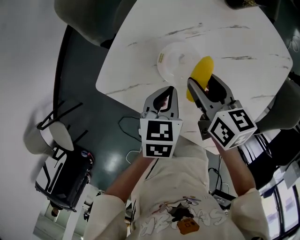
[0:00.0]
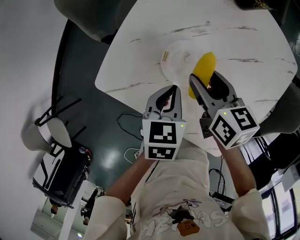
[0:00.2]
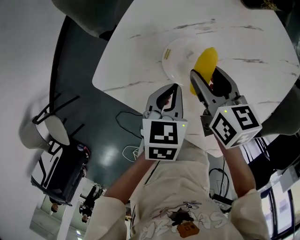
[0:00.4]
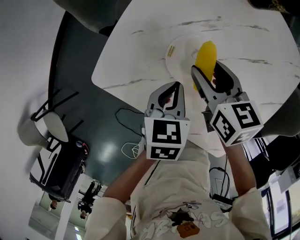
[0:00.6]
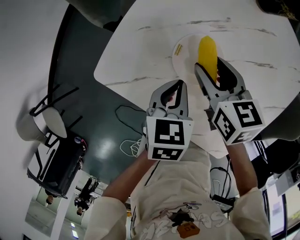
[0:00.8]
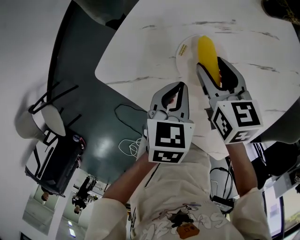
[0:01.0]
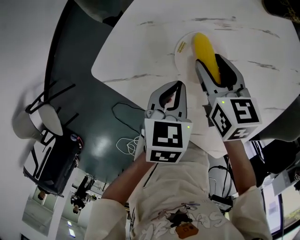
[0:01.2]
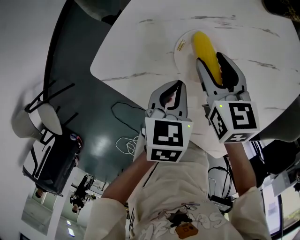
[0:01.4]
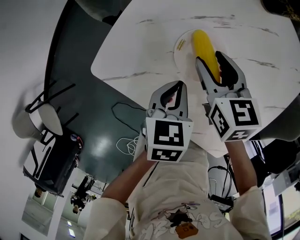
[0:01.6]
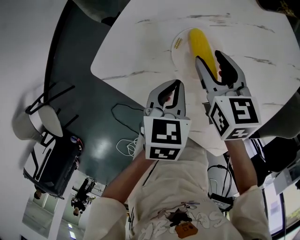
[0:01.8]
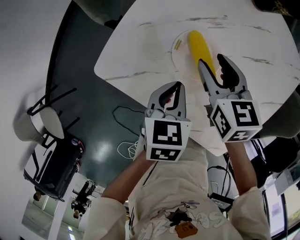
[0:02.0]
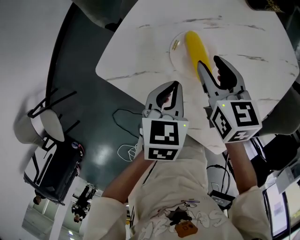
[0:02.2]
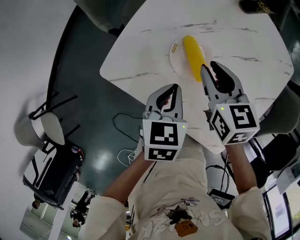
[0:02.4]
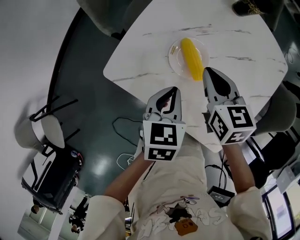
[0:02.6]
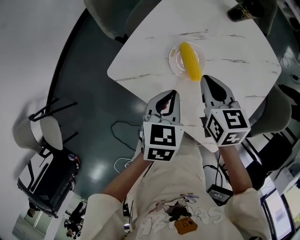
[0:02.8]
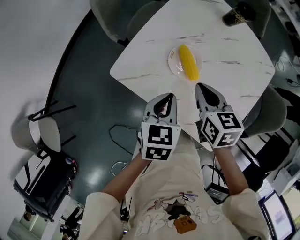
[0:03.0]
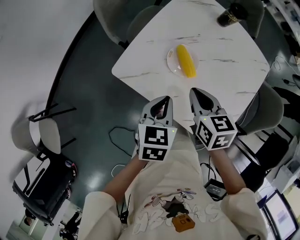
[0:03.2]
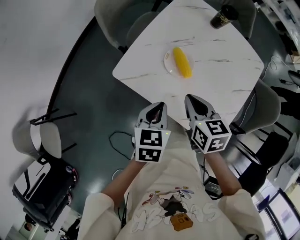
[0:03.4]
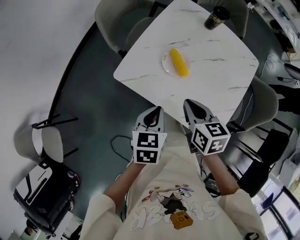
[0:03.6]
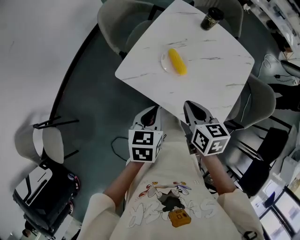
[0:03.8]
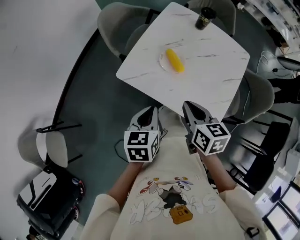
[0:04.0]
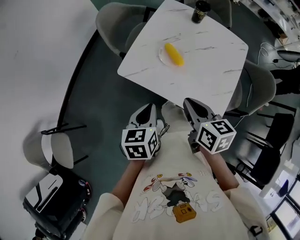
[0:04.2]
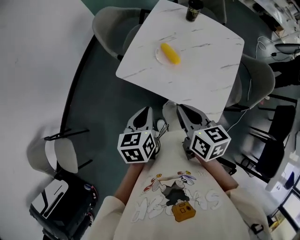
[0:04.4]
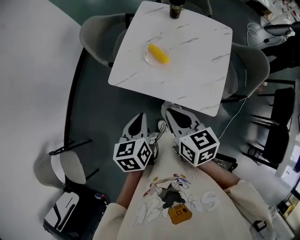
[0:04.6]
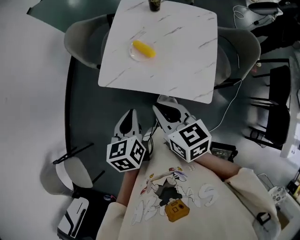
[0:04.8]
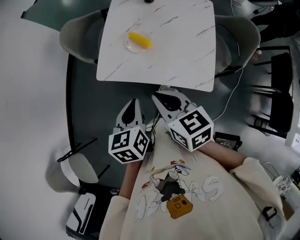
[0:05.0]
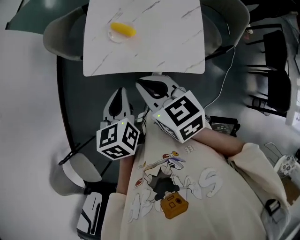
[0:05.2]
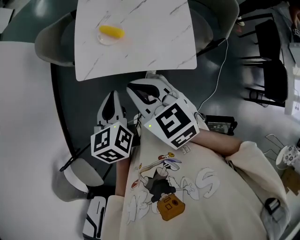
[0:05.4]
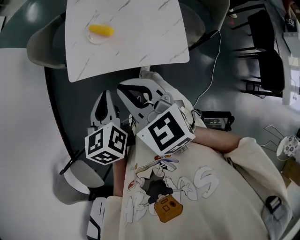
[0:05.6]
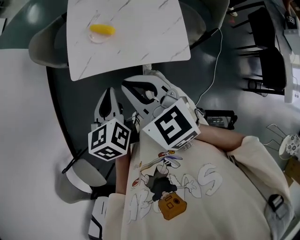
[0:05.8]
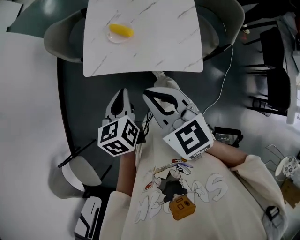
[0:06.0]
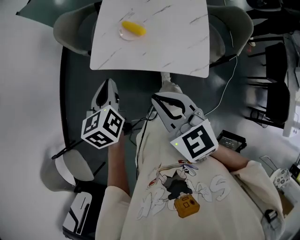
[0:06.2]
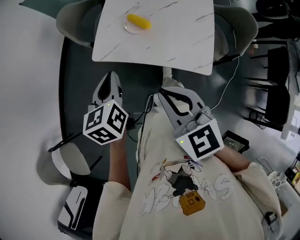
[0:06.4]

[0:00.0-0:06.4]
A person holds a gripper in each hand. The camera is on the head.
0:00.0 to 0:01.6: The left gripper ends up about 5 cm from where it was; the right gripper is displaced downward by some 5 cm.
0:01.6 to 0:03.2: Both grippers travel together upward and backward, some 20 cm. The right gripper closes.
0:03.2 to 0:04.8: The right gripper is displaced backward and upward by approximately 25 cm. Meanwhile the left gripper is displaced backward, upward and to the left by approximately 20 cm.
0:04.8 to 0:06.4: The right gripper heads backward, covering some 5 cm, and changes its angle by roughly 30 degrees; the left gripper ends up some 5 cm from where it was.

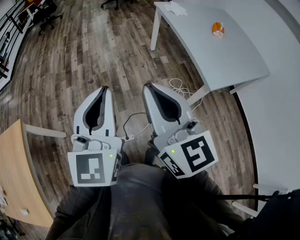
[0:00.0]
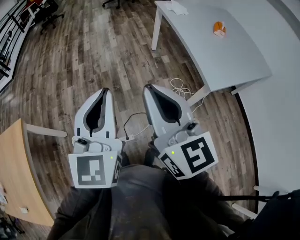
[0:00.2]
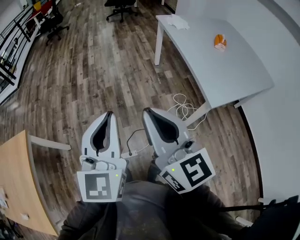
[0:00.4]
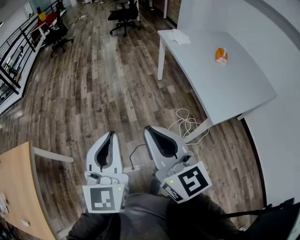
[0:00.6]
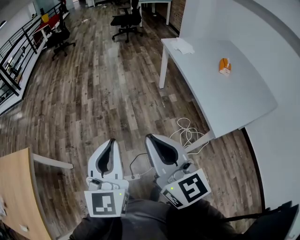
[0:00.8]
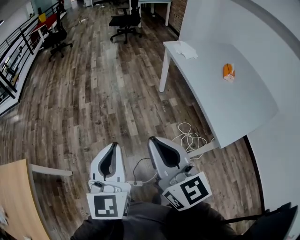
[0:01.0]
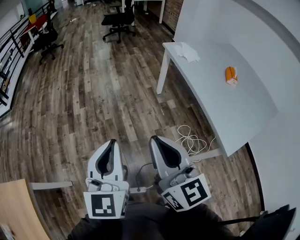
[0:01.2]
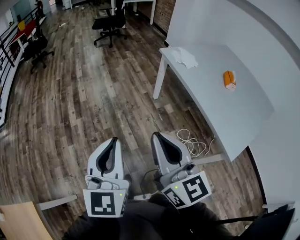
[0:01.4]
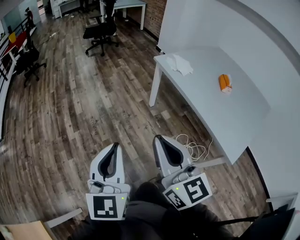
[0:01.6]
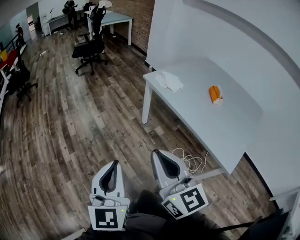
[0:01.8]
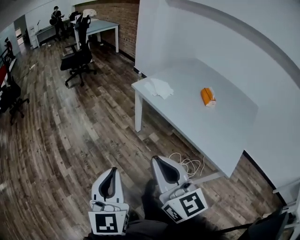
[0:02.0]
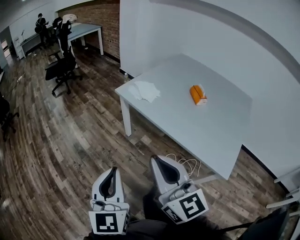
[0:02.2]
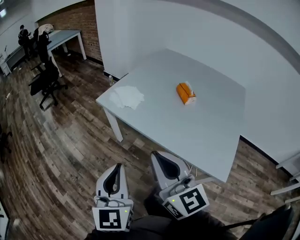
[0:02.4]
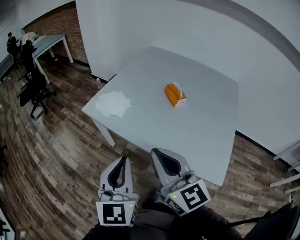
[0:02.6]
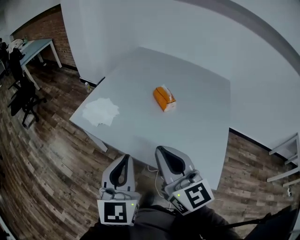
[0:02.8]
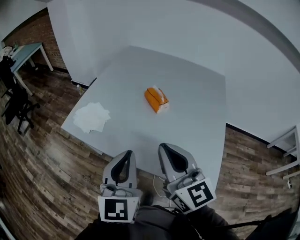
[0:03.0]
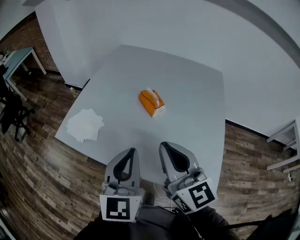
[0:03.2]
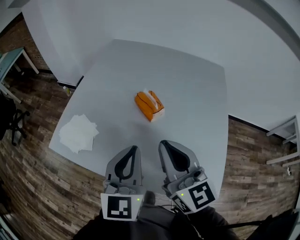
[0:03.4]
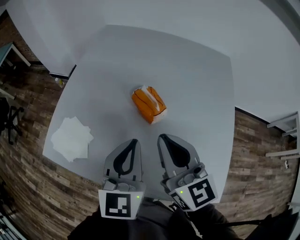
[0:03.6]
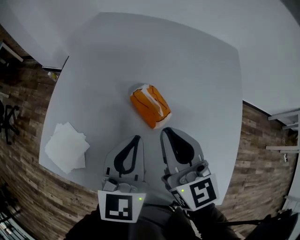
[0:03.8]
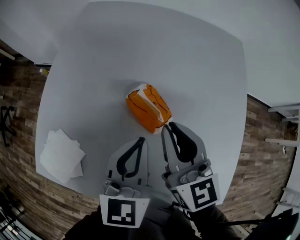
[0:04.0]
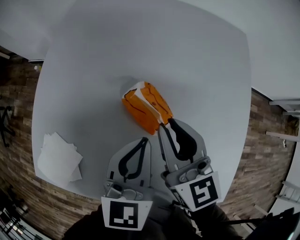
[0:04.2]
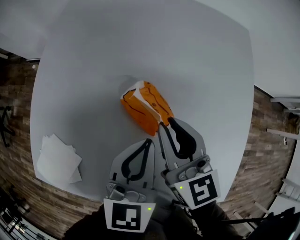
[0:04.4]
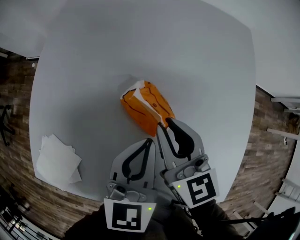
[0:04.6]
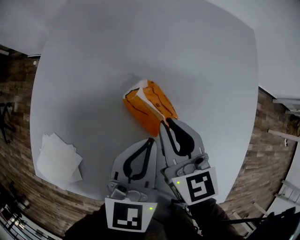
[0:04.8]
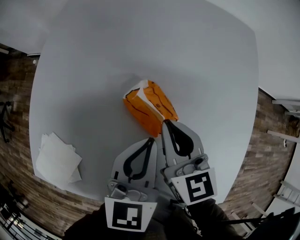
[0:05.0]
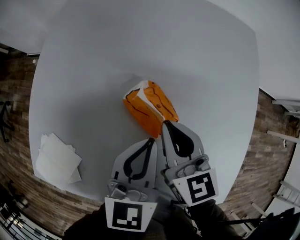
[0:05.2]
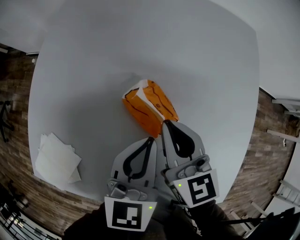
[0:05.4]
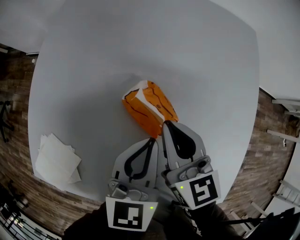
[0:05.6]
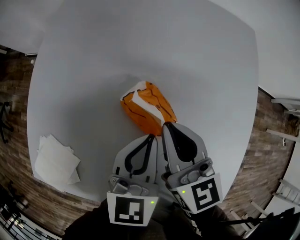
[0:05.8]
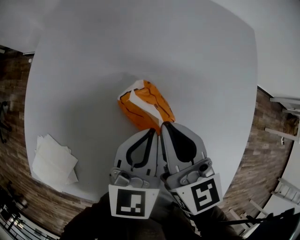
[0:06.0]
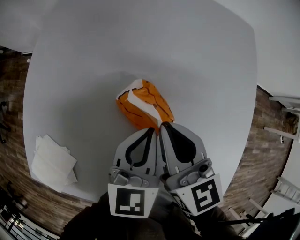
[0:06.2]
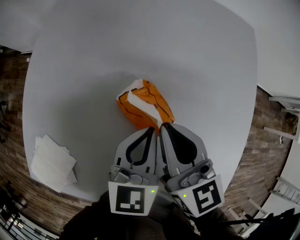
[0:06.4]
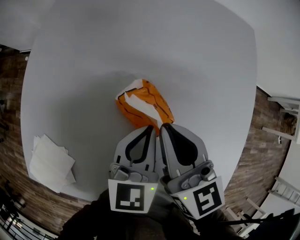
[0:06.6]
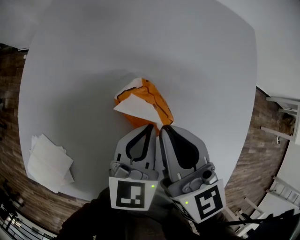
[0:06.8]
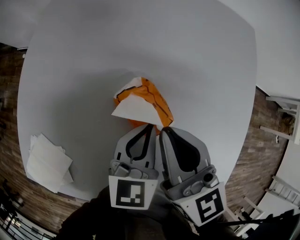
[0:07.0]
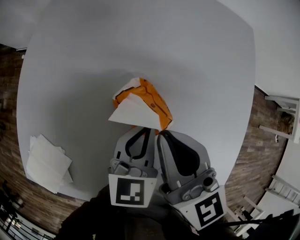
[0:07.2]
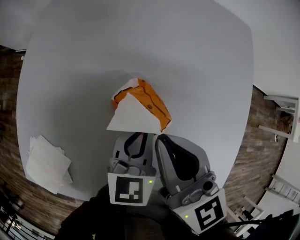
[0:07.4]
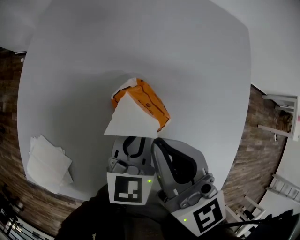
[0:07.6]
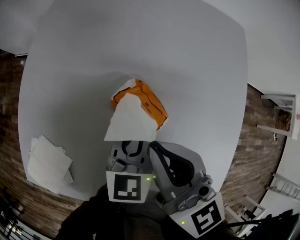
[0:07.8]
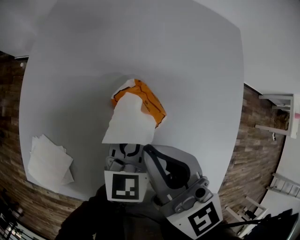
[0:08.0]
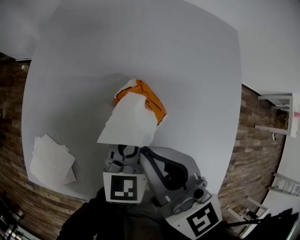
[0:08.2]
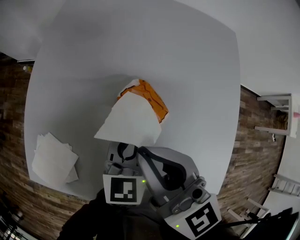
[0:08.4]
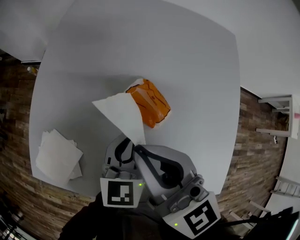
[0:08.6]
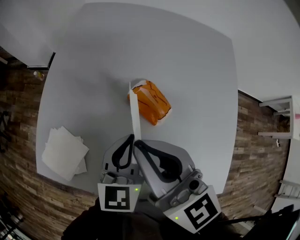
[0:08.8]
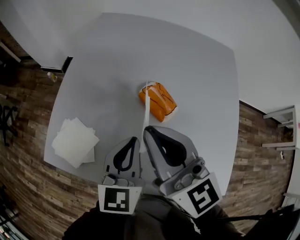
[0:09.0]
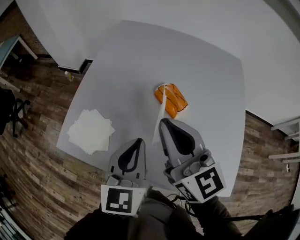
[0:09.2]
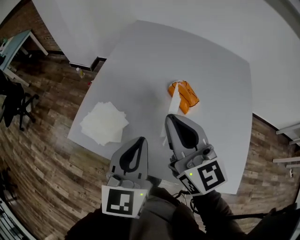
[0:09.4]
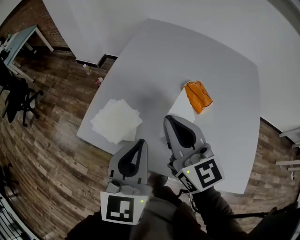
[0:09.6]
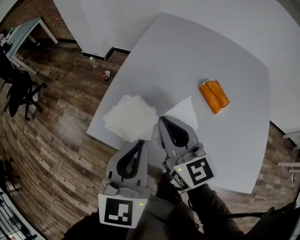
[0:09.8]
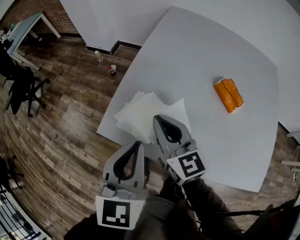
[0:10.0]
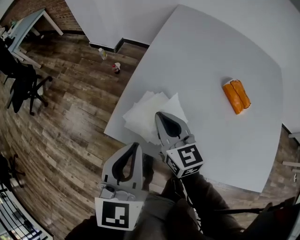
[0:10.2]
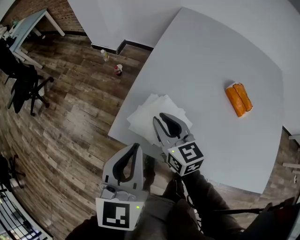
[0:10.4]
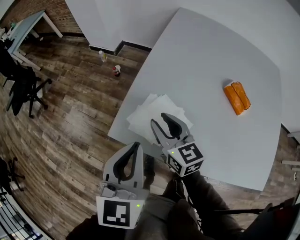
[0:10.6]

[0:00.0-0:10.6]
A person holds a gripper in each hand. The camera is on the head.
0:00.0 to 0:01.6: The two grippers travel together, forward, some 40 cm.
0:01.6 to 0:03.0: The pair of grippers is taken roughly 50 cm. The left gripper turns by some 40 degrees, while the right gripper turns by approximately 40 degrees.
0:03.0 to 0:04.6: The two grippers go roughly 40 cm forward and downward. The right gripper rotates roughly 30 degrees. Meanwhile the left gripper turns by roughly 30 degrees.
0:04.6 to 0:06.0: The grippers make only small movements.
0:06.0 to 0:07.6: The right gripper moves upward, some 5 cm.
0:07.6 to 0:09.0: The grippers both shift upward, backward and to the left by some 20 cm.
0:09.0 to 0:10.6: The right gripper moves to the left and downward, about 40 cm, swivels some 20 degrees, and opens its fingers, while the left gripper travels to the left by some 35 cm.

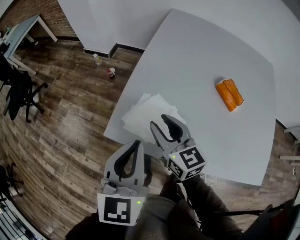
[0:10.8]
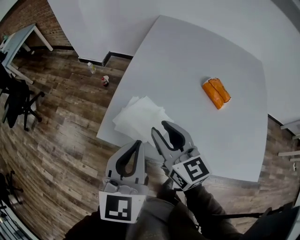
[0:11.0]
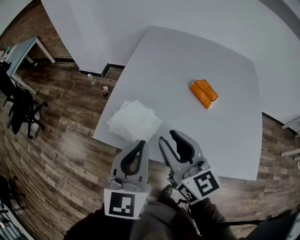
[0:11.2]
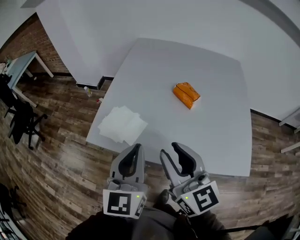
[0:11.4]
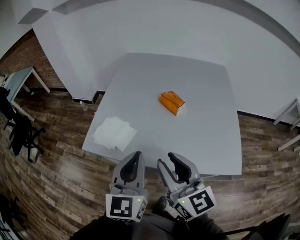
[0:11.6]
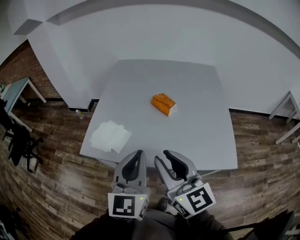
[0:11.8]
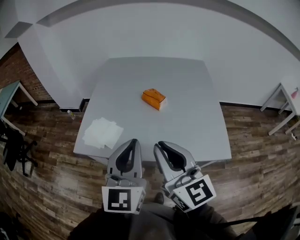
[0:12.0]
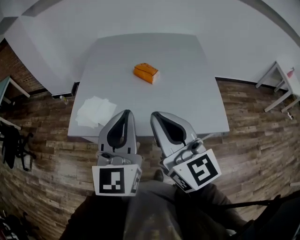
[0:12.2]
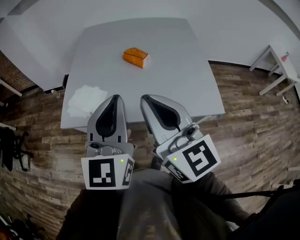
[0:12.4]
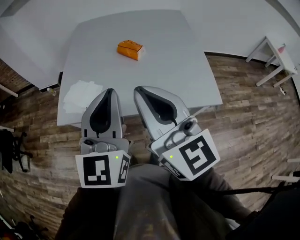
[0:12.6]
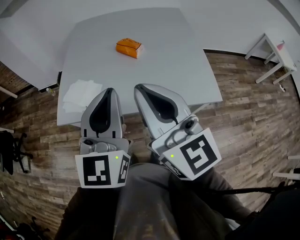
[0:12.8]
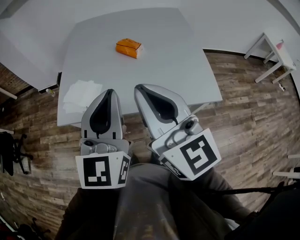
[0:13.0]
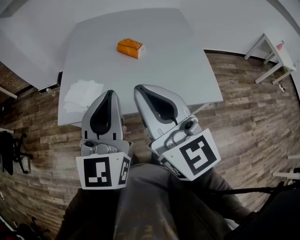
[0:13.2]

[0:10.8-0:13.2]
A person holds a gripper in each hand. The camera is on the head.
0:10.8 to 0:12.0: The left gripper shifts about 35 cm to the right, backward and upward, and swivels some 20 degrees, while the right gripper shifts some 40 cm backward, to the right and upward, turns by some 30 degrees, and closes.
0:12.0 to 0:13.2: There are only small adjustments of the grippers.

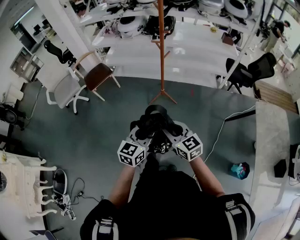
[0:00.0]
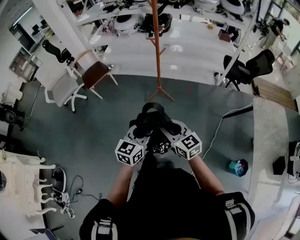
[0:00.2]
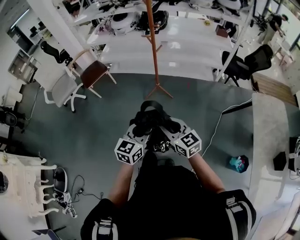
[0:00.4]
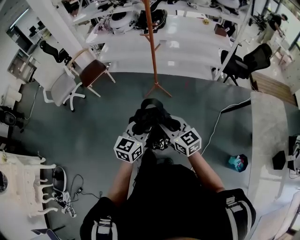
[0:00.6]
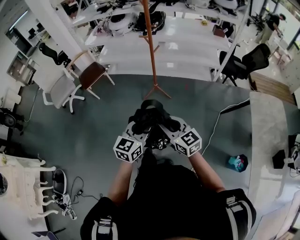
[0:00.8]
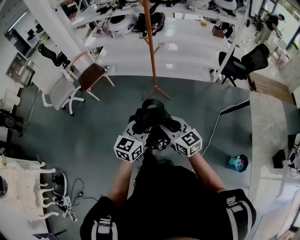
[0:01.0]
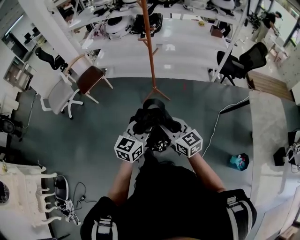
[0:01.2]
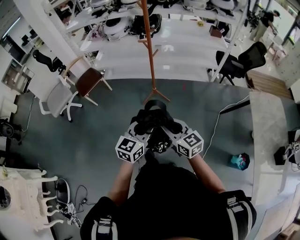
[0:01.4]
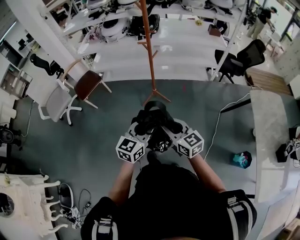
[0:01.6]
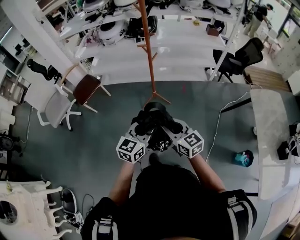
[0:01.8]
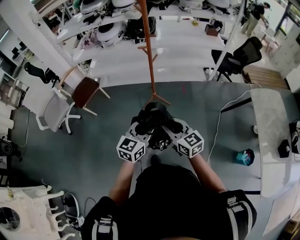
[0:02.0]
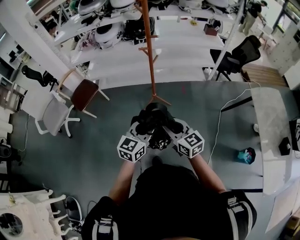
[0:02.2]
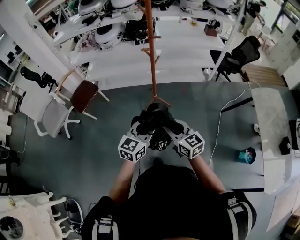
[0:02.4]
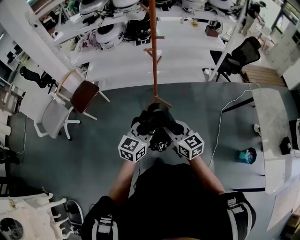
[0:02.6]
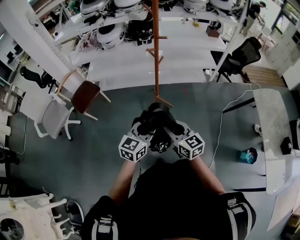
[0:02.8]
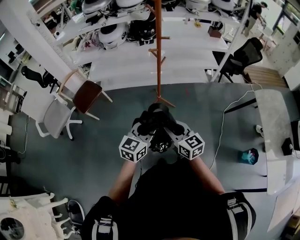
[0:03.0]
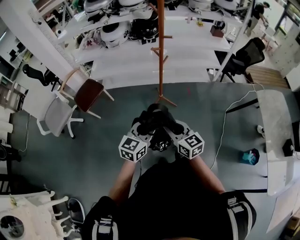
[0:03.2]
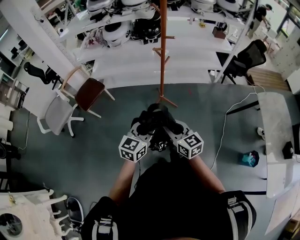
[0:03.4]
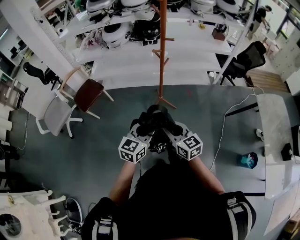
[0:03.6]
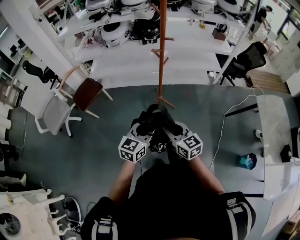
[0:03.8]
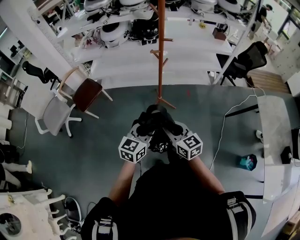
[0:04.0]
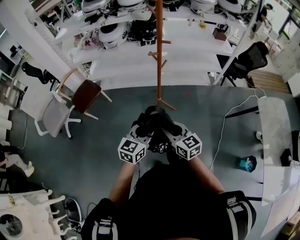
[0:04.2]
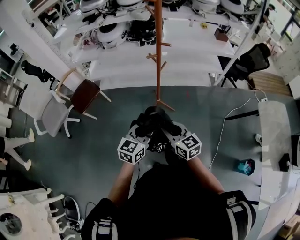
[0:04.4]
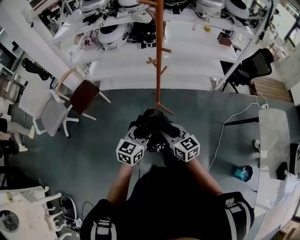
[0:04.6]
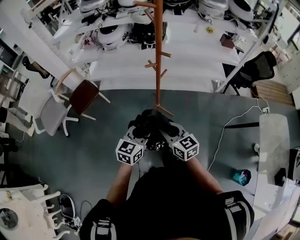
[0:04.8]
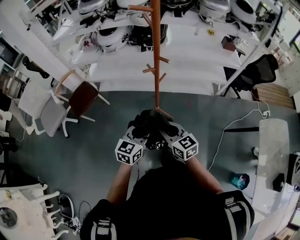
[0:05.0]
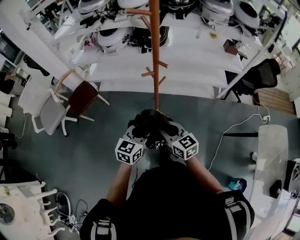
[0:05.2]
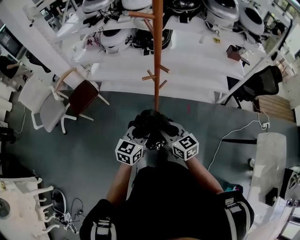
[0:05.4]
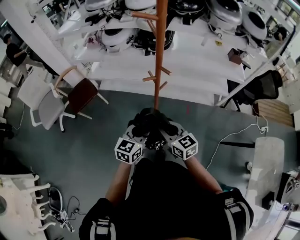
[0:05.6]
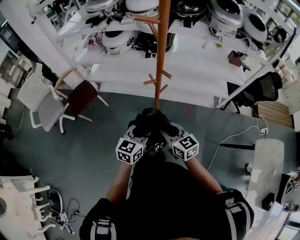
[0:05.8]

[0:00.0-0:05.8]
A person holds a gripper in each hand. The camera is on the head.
0:01.4 to 0:02.8: The grippers both shift to the left and forward by approximately 20 cm.
0:02.8 to 0:04.4: Both grippers travel together forward, approximately 15 cm.
0:04.4 to 0:05.8: The grippers both shift forward and to the right by roughly 25 cm.
